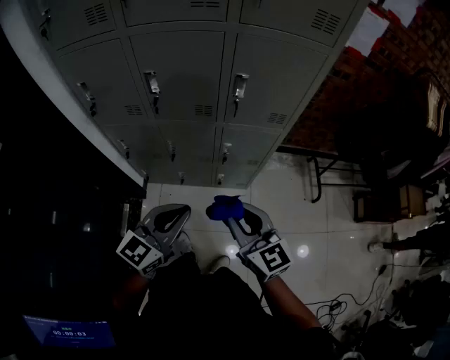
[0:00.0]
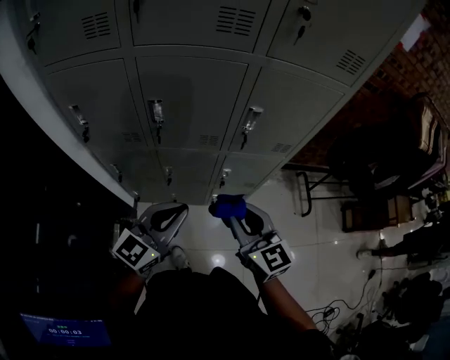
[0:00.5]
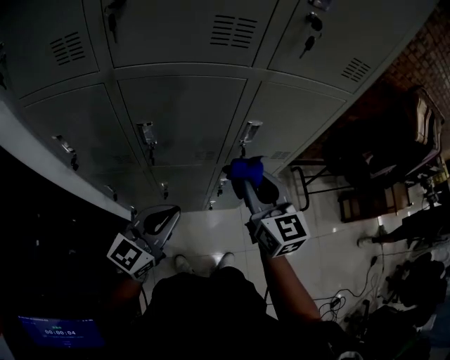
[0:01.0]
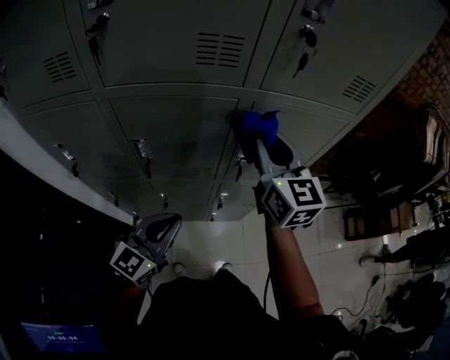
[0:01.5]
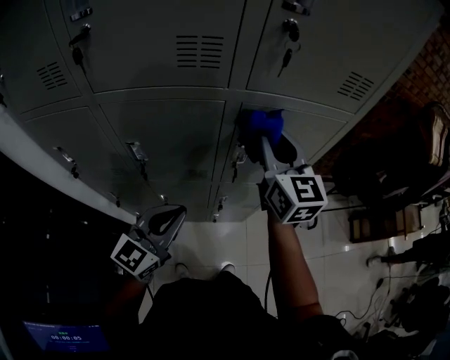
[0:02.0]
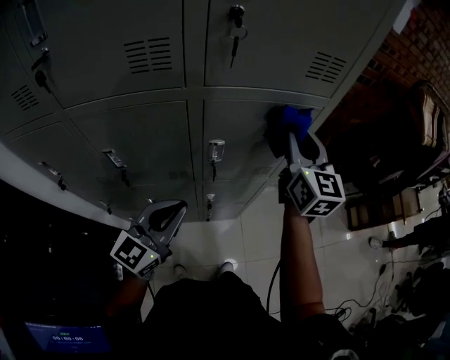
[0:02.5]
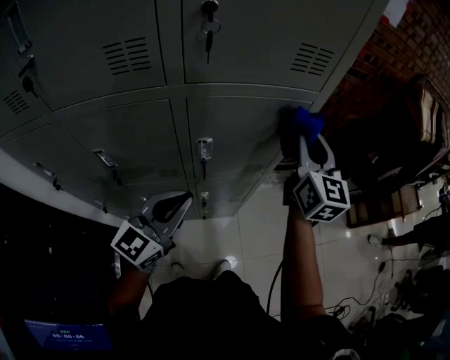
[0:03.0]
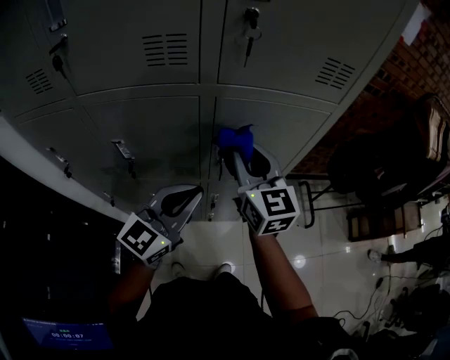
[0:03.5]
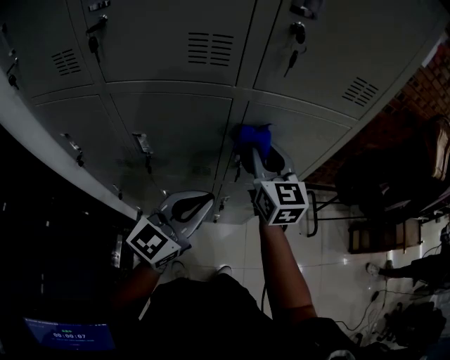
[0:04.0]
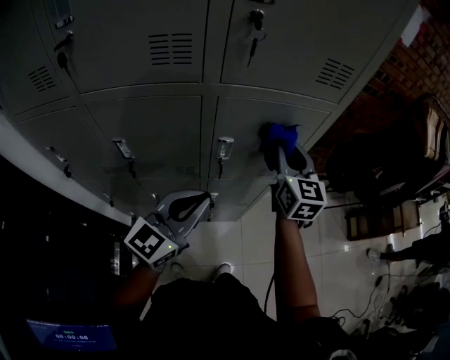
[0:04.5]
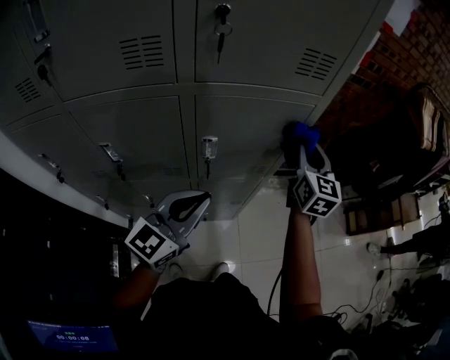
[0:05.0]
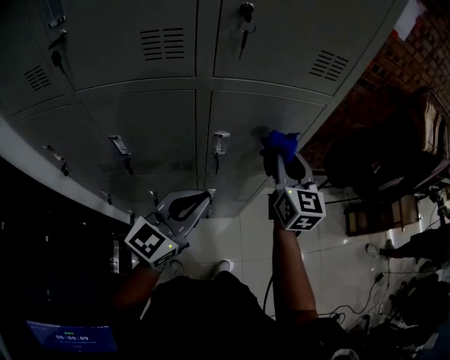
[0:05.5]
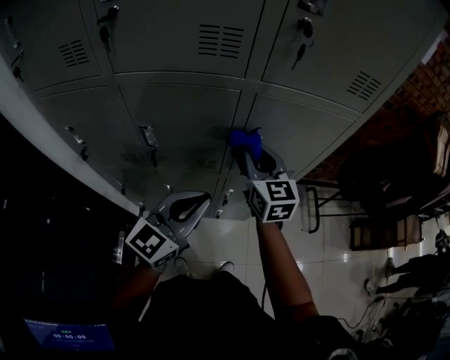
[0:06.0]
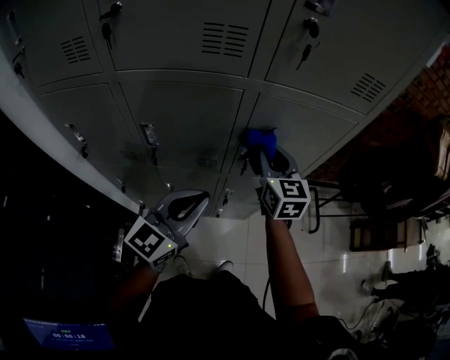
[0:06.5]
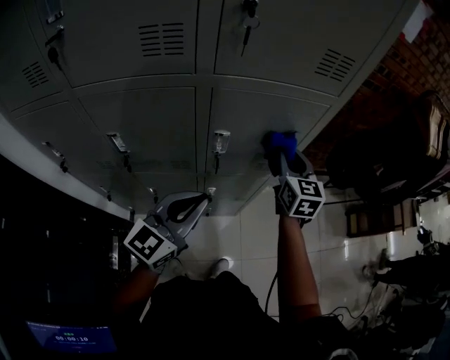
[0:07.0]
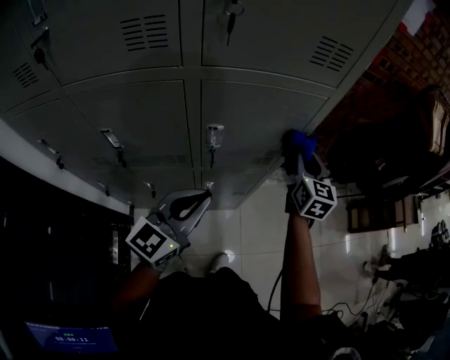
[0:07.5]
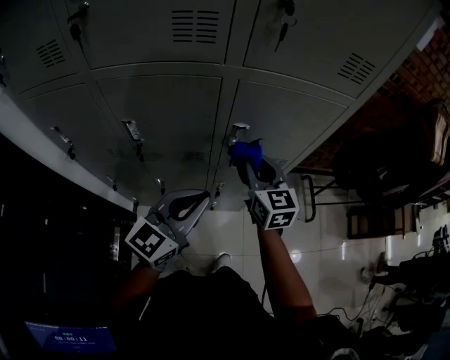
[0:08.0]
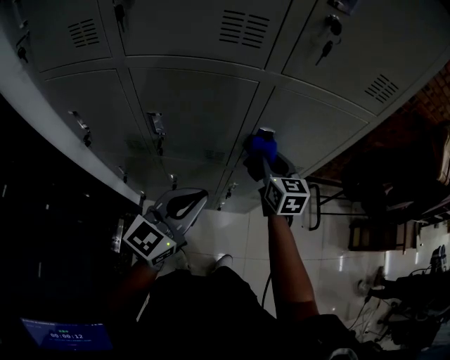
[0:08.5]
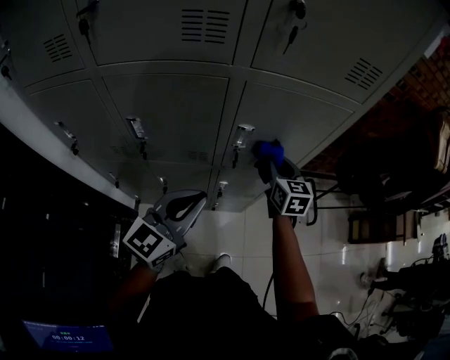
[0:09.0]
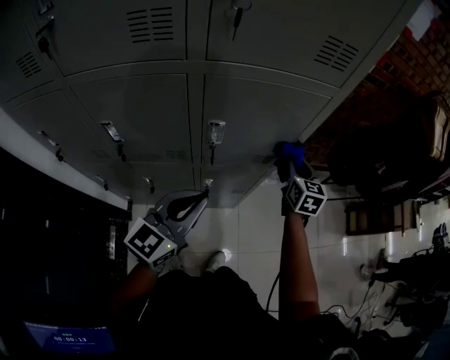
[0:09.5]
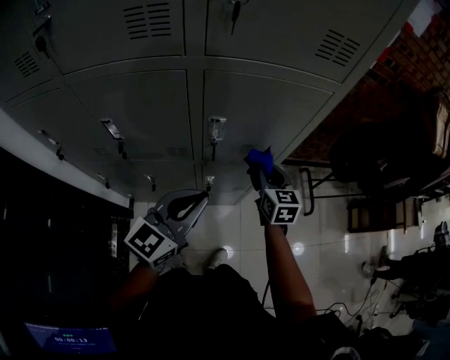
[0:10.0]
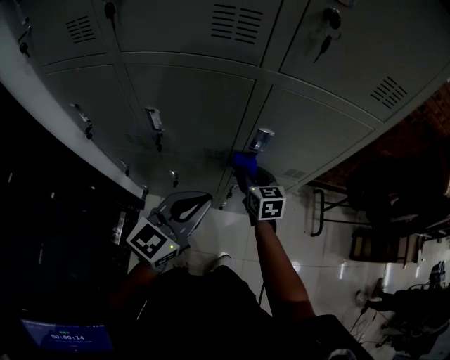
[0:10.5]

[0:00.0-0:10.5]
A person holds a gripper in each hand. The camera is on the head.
0:00.0 to 0:02.0: The right gripper heads forward and upward, covering approximately 40 cm, and rotates approximately 20 degrees, while the left gripper travels forward by about 25 cm.
0:02.0 to 0:04.0: The left gripper goes roughly 5 cm to the right, while the right gripper is displaced downward by roughly 5 cm, and reaches approximately 20 cm to the right, then returns.
0:04.0 to 0:06.5: The right gripper moves some 20 cm to the right and comes back; the left gripper travels to the right and back again, approximately 5 cm each way.
0:06.5 to 0:08.5: The right gripper shifts roughly 5 cm downward, and reaches some 20 cm to the right, then returns. Meanwhile the left gripper moves some 10 cm to the right and comes back.
0:08.5 to 0:10.5: The left gripper moves some 10 cm to the right and comes back. The right gripper heads downward, covering some 10 cm, and travels to the right and back again, some 20 cm each way.

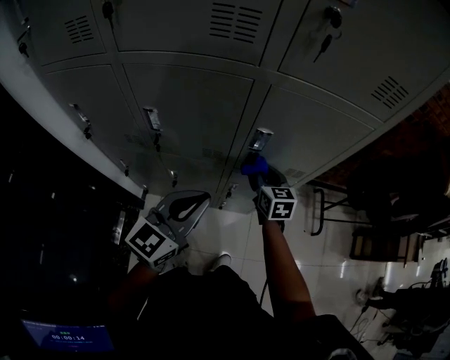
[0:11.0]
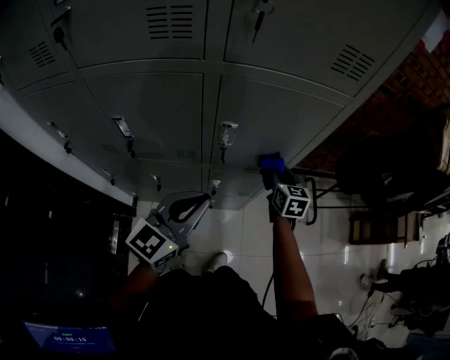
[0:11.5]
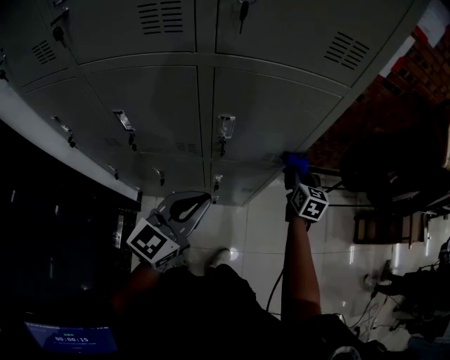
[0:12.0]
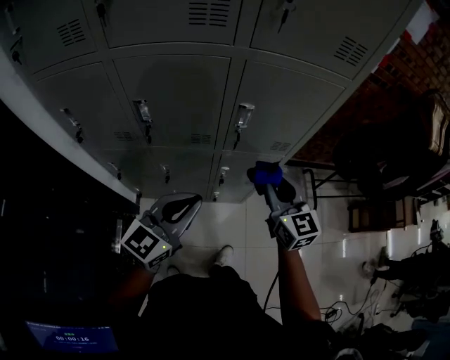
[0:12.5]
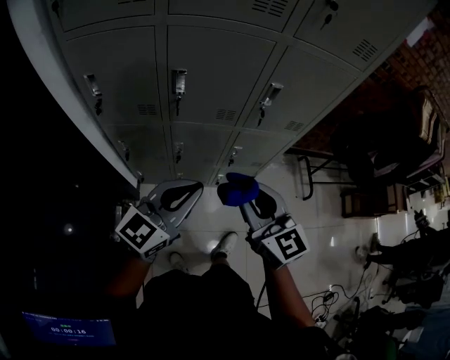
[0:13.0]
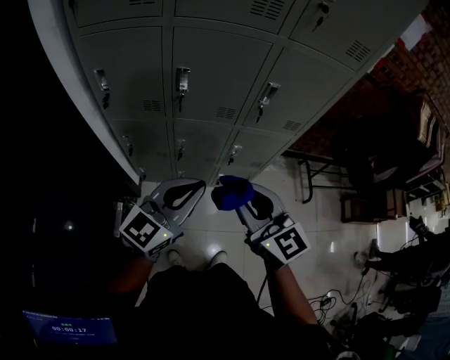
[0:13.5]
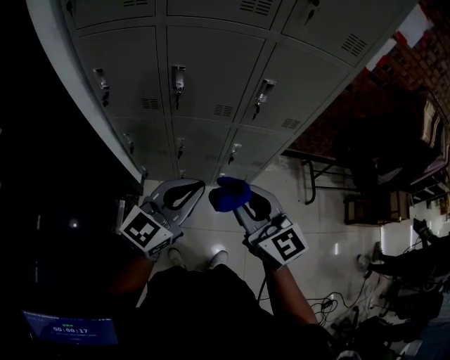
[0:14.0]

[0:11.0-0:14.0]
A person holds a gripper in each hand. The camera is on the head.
0:11.0 to 0:12.5: The left gripper moves backward, some 5 cm, while the right gripper shifts roughly 20 cm backward and upward, and reaches roughly 25 cm to the right, then returns.
0:12.5 to 0:14.0: The right gripper moves backward and to the left, some 25 cm. Meanwhile the left gripper is displaced backward and to the left by some 15 cm.

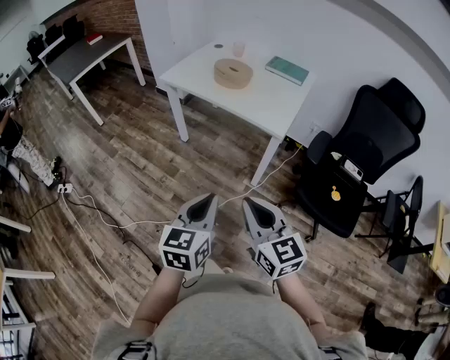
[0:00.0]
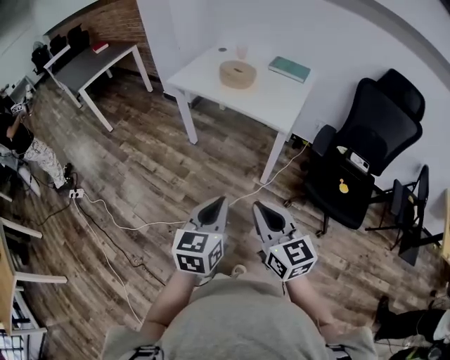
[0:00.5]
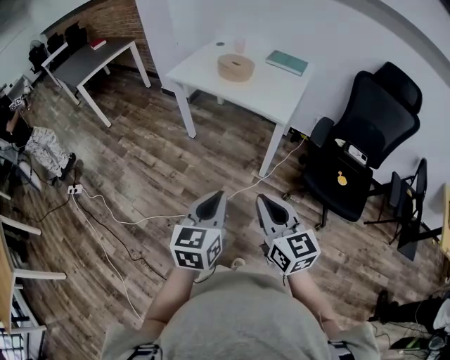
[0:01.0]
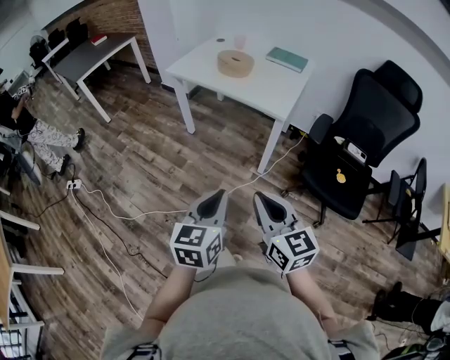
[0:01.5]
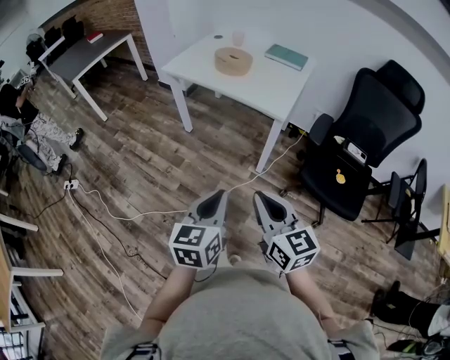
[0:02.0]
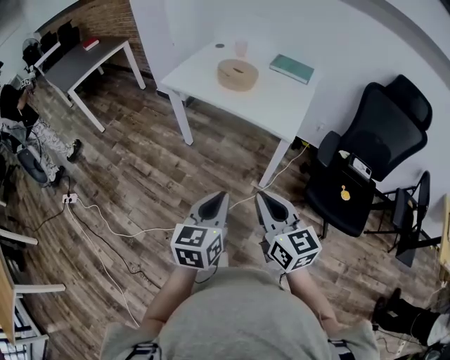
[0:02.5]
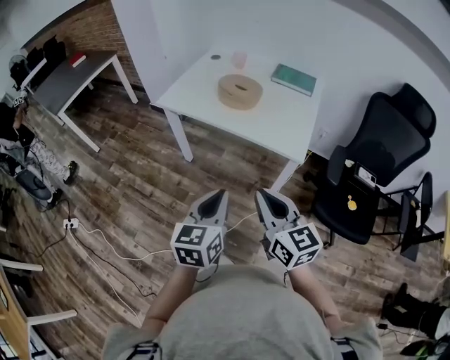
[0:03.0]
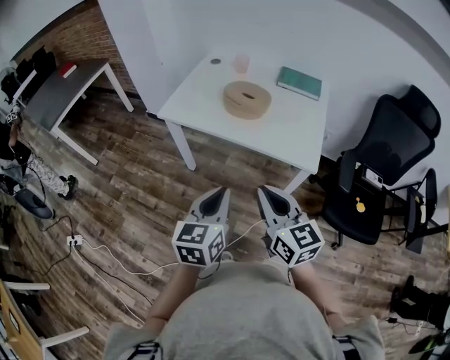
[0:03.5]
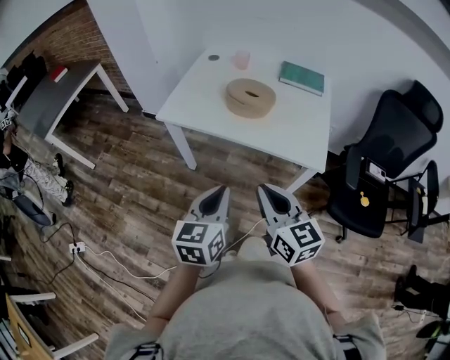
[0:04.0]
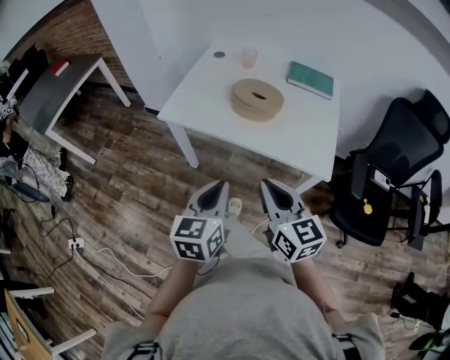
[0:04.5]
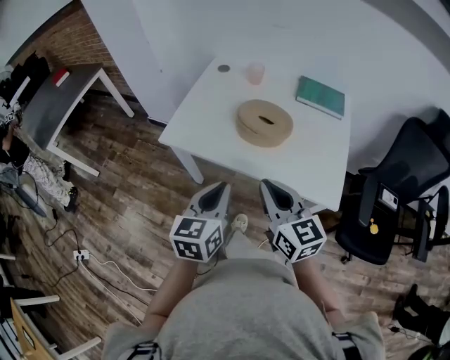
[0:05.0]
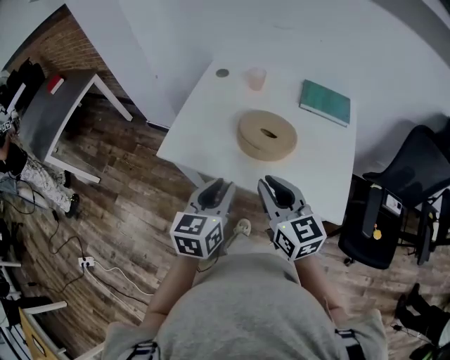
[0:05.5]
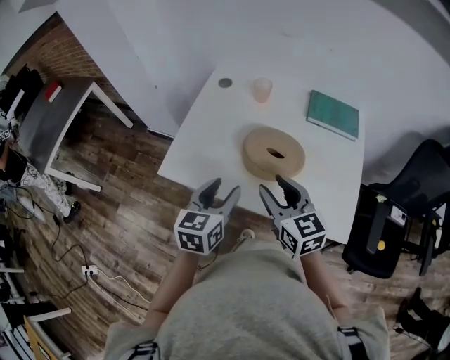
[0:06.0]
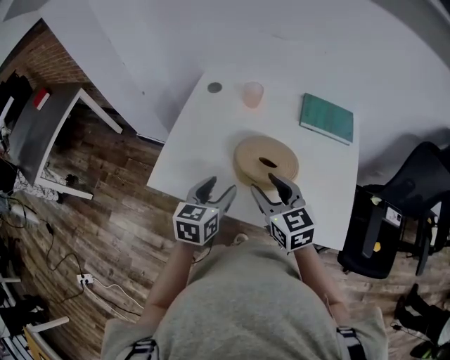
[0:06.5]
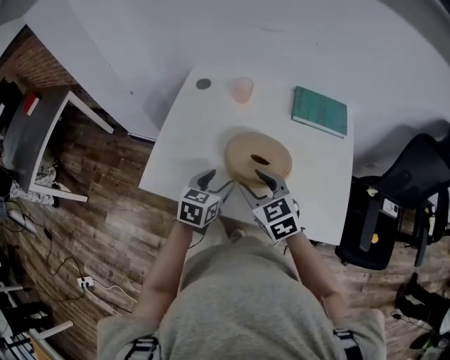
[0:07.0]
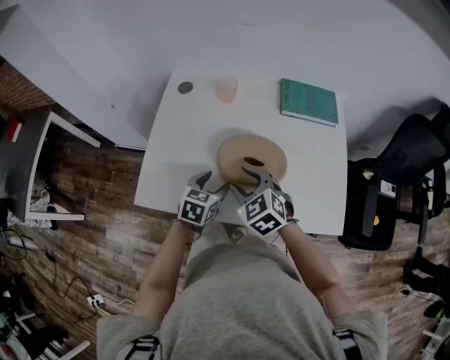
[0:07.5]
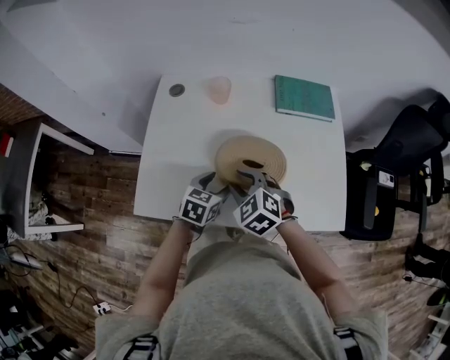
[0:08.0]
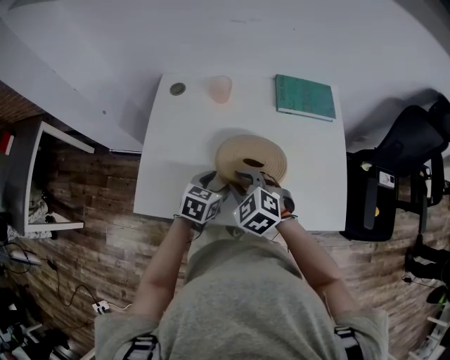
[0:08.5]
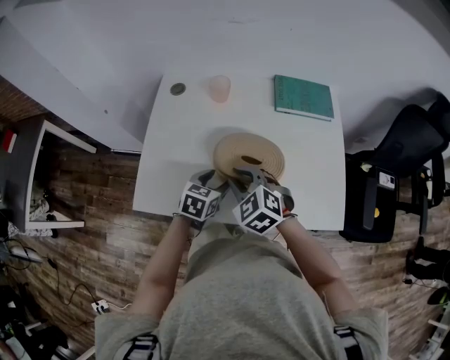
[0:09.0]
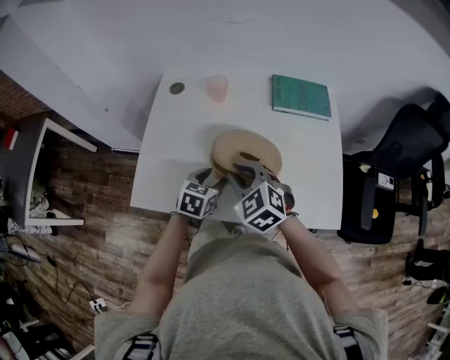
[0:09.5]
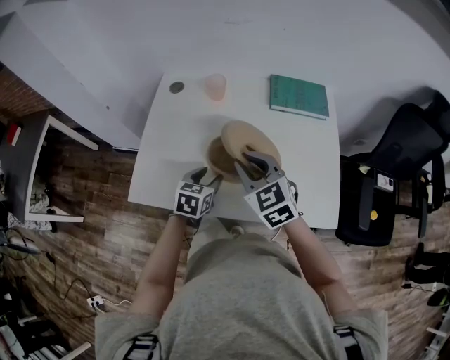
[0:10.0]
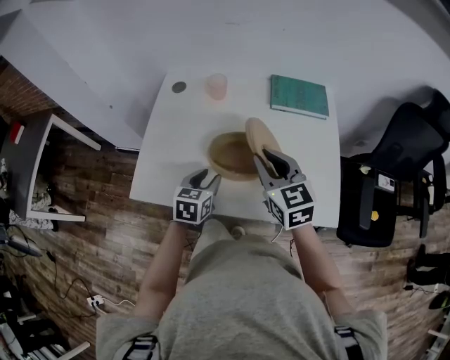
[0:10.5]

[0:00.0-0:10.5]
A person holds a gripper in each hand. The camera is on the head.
0:00.0 to 0:02.0: Both grippers move backward, roughly 5 cm.
0:02.0 to 0:04.0: Both grippers travel together forward and to the left, about 40 cm.
0:04.0 to 0:06.5: Both grippers move forward, about 40 cm. The right gripper opens its fingers. The left gripper opens.
0:06.5 to 0:08.5: The left gripper goes roughly 15 cm downward and forward, and turns by approximately 30 degrees; the right gripper goes roughly 10 cm downward, and swivels roughly 40 degrees.
0:08.5 to 0:10.5: The left gripper closes, while the right gripper shifts about 15 cm upward and to the right, and changes its angle by some 40 degrees.

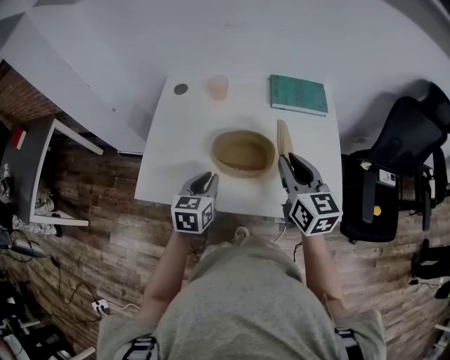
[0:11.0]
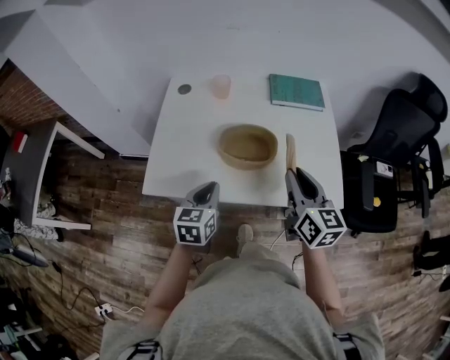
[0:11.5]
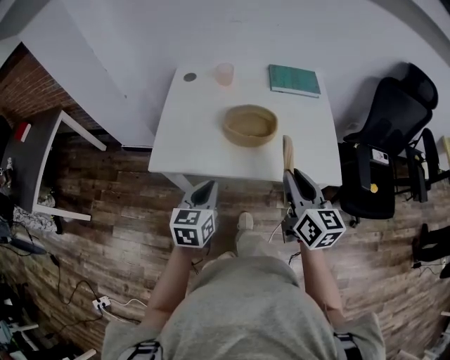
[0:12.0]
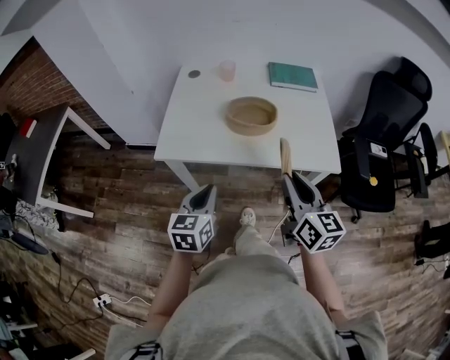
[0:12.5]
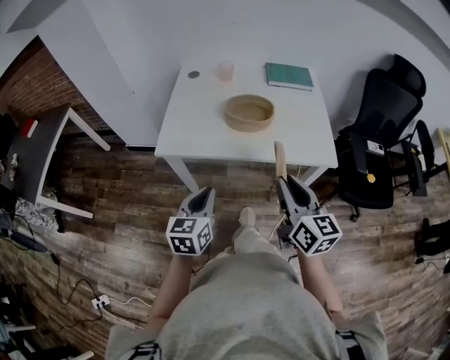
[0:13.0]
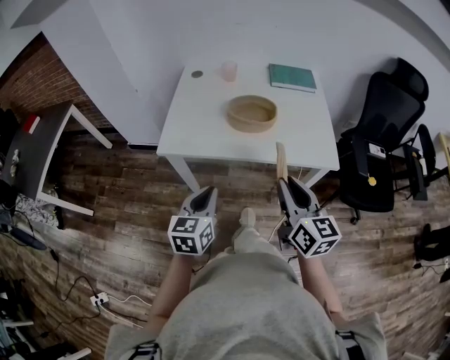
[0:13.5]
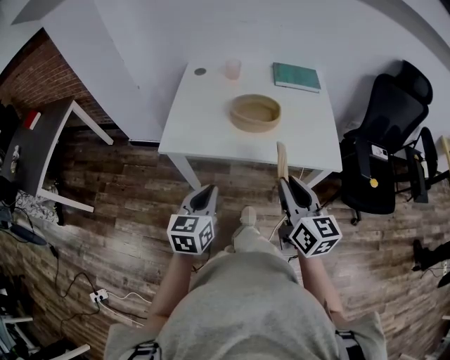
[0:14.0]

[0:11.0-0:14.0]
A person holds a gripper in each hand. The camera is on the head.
0:11.0 to 0:12.5: Both grippers move backward, some 25 cm.
0:12.5 to 0:14.0: The grippers make only small movements.
